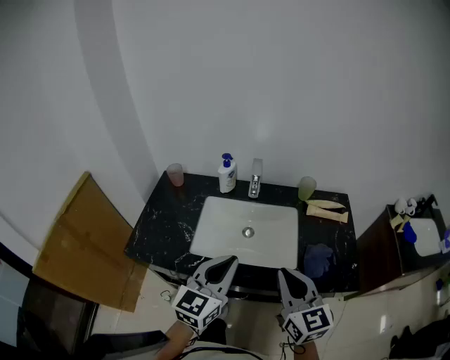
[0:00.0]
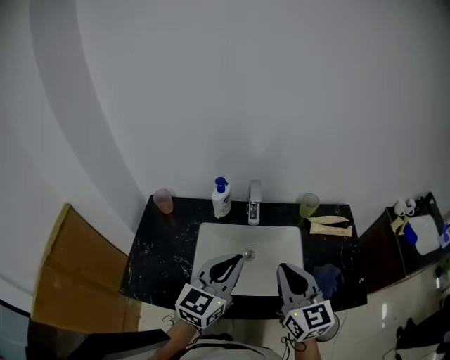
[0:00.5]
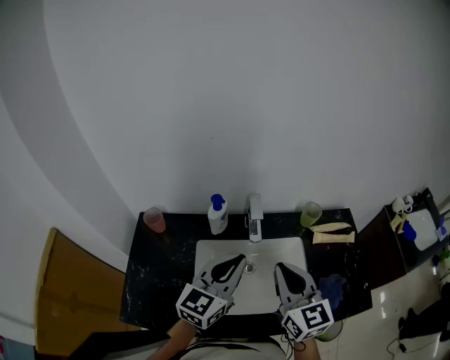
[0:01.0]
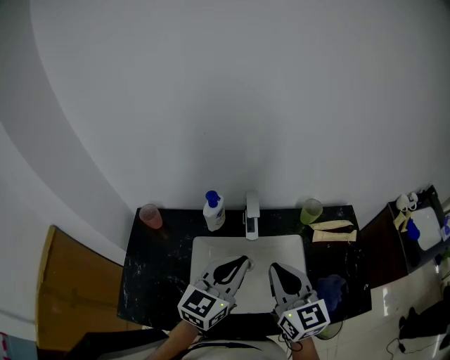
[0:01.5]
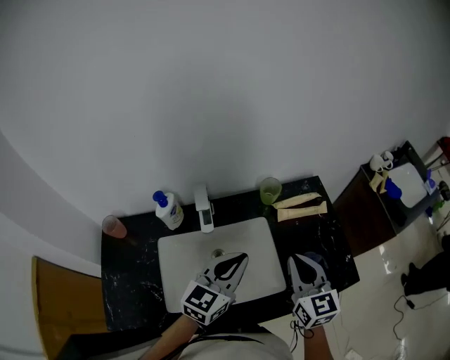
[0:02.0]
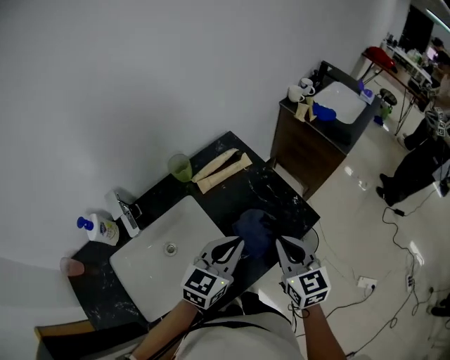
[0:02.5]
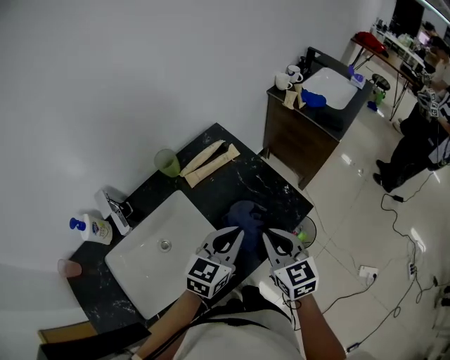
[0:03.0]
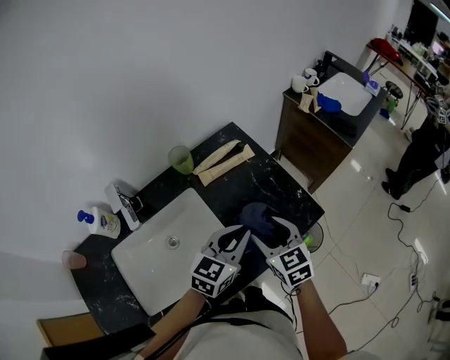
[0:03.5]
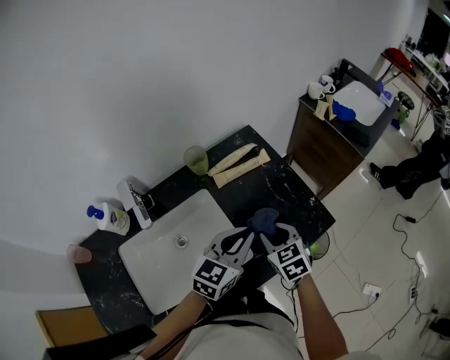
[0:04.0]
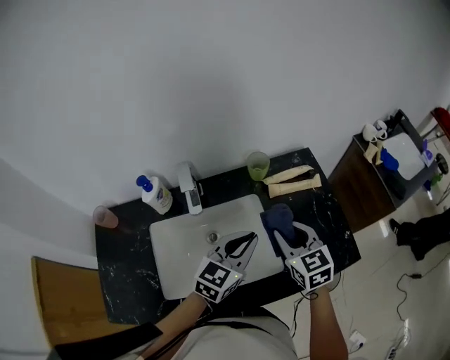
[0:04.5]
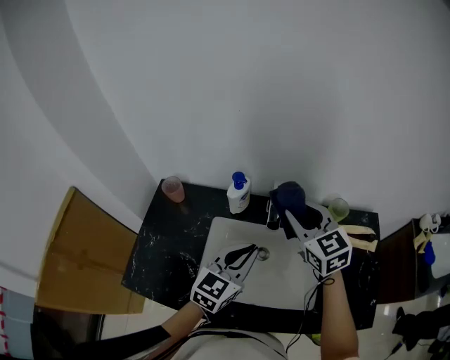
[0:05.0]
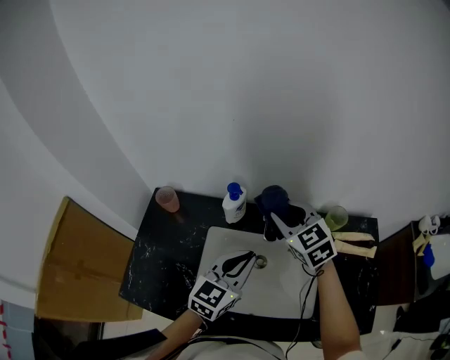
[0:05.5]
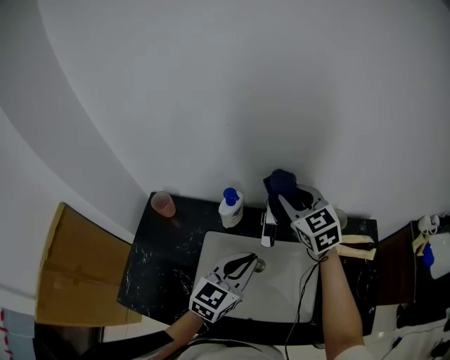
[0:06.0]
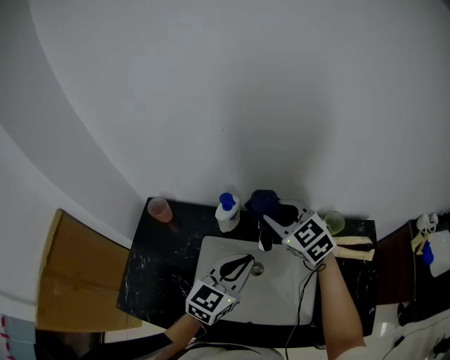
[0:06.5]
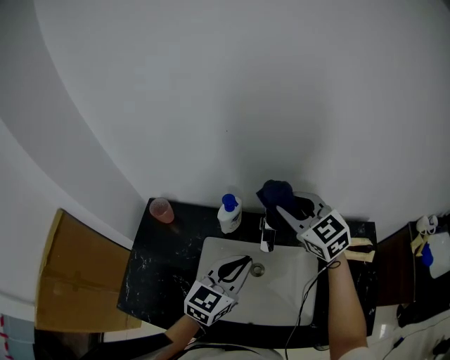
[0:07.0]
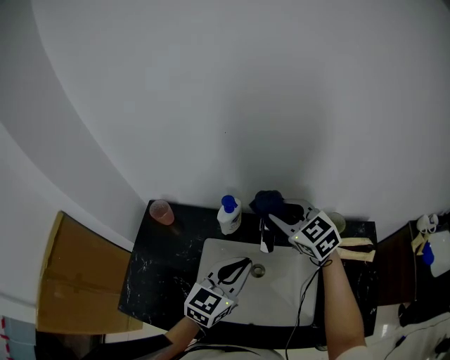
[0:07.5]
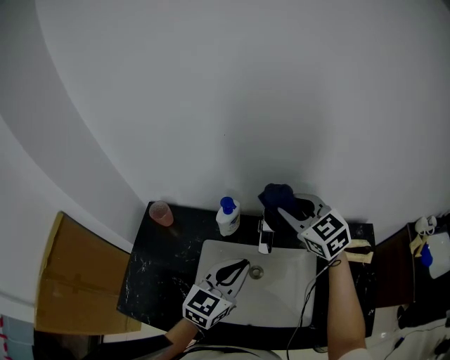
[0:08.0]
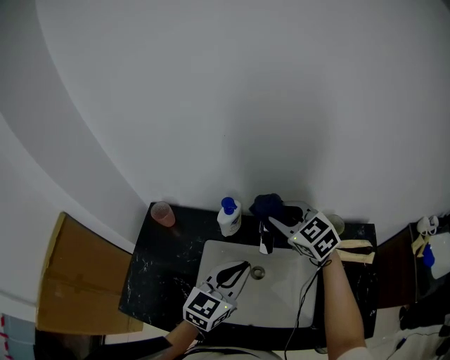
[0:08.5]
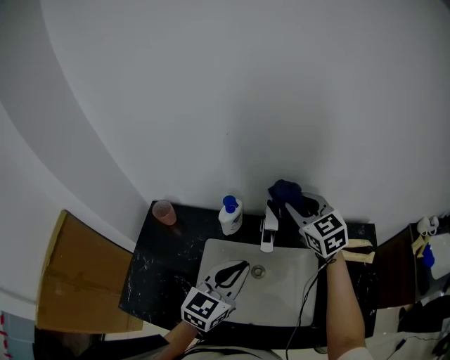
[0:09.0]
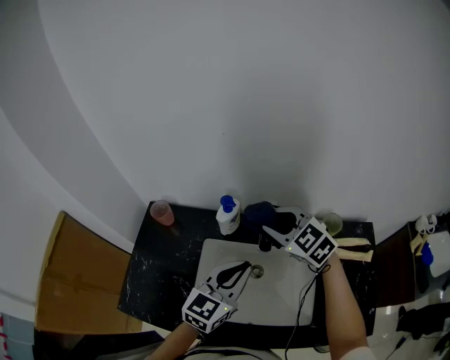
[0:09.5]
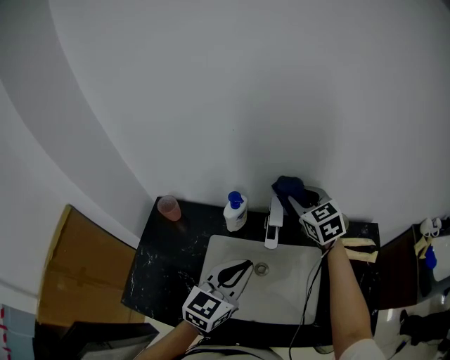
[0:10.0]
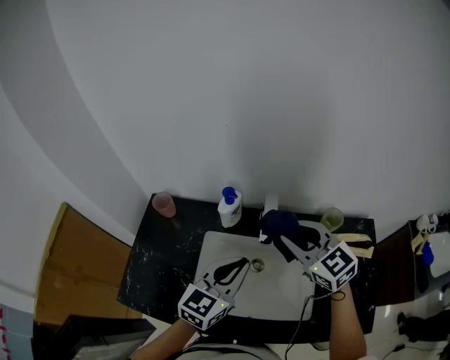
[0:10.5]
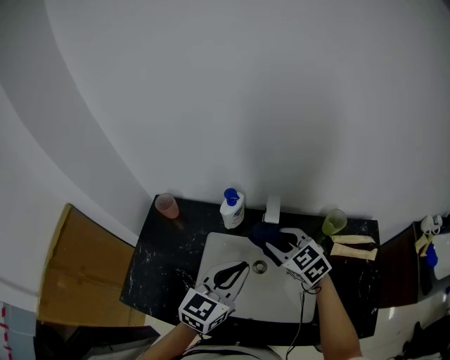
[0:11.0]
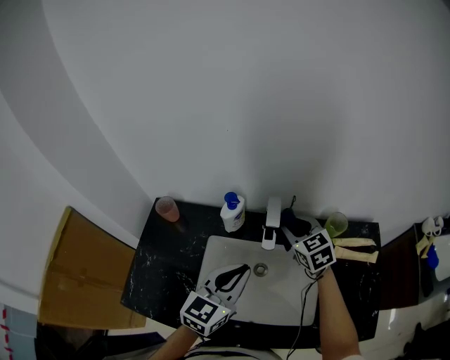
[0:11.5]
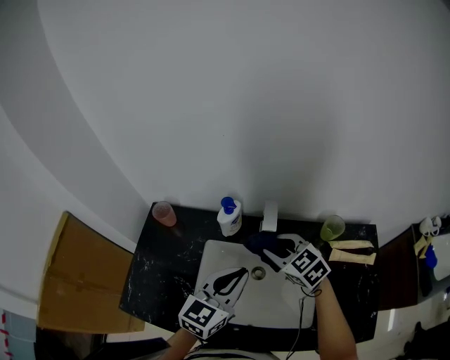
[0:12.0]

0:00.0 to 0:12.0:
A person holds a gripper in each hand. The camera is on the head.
0:00.0 to 0:02.0: The right gripper changes place by approximately 20 cm, and turns by roughly 20 degrees, while the left gripper changes place by approximately 25 cm, and turns by some 30 degrees.
0:02.0 to 0:04.0: The left gripper goes about 20 cm to the right and downward, and swivels some 20 degrees. The right gripper heads downward and to the right, covering about 20 cm, swivels approximately 30 degrees, and opens up.
0:04.0 to 0:06.0: The left gripper shifts by about 30 cm, and turns by roughly 40 degrees, while the right gripper changes place by roughly 50 cm, and rotates approximately 50 degrees.
0:08.0 to 0:10.0: The right gripper moves about 5 cm.
0:10.0 to 0:12.0: The right gripper swings forward and backward, about 15 cm each way, with 2 reversals, and turns by roughly 20 degrees.

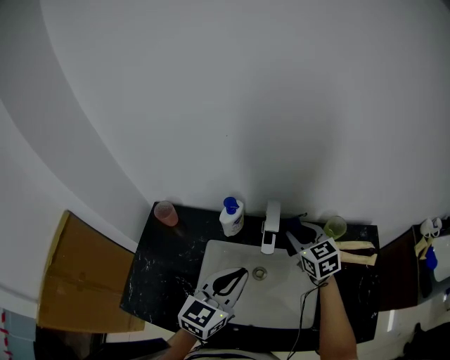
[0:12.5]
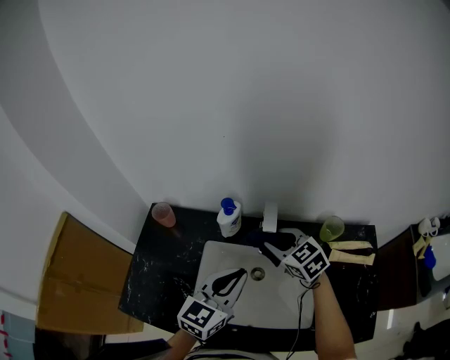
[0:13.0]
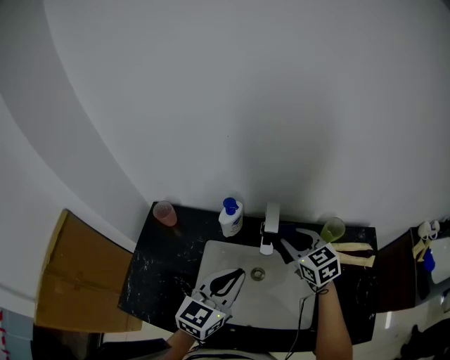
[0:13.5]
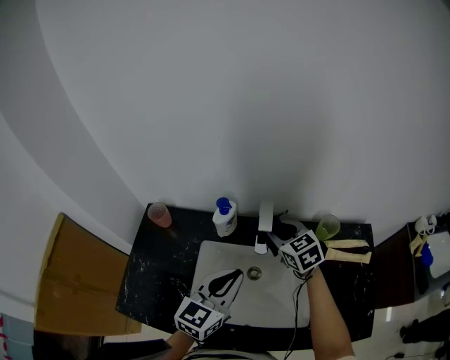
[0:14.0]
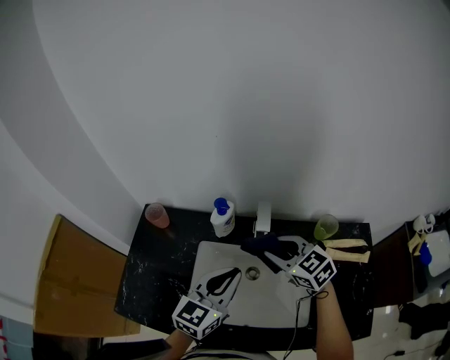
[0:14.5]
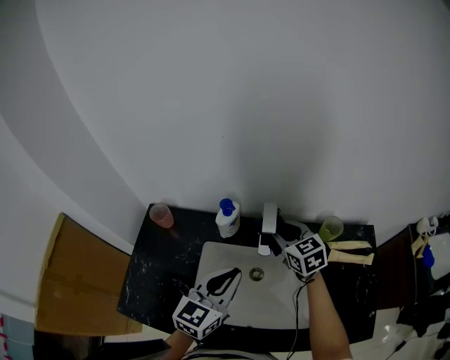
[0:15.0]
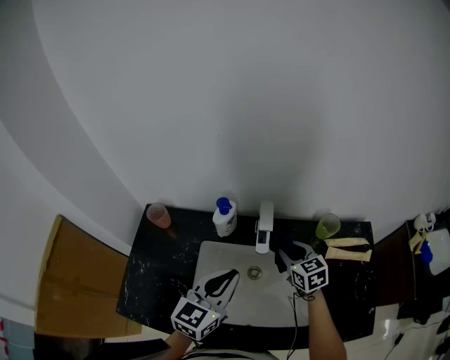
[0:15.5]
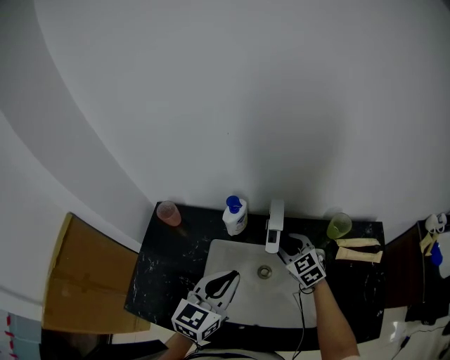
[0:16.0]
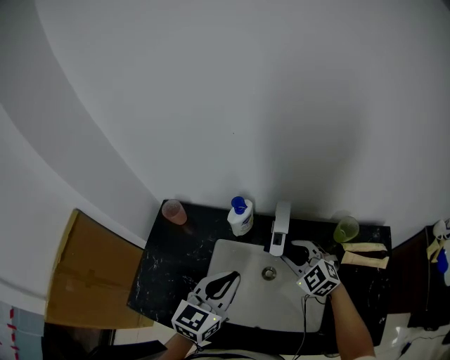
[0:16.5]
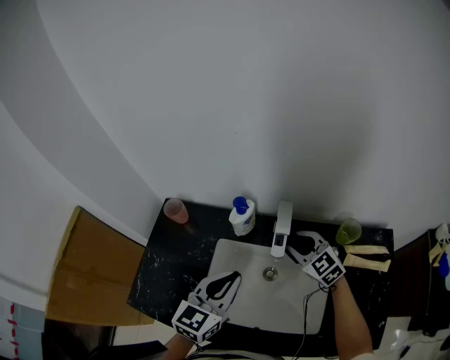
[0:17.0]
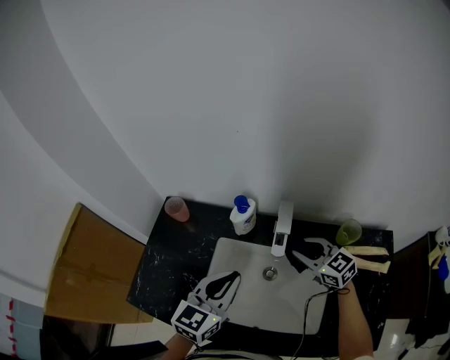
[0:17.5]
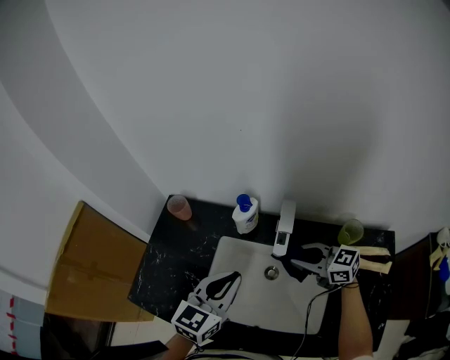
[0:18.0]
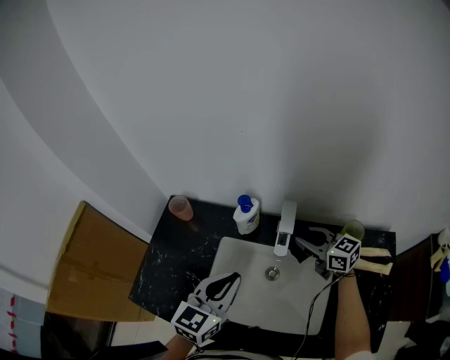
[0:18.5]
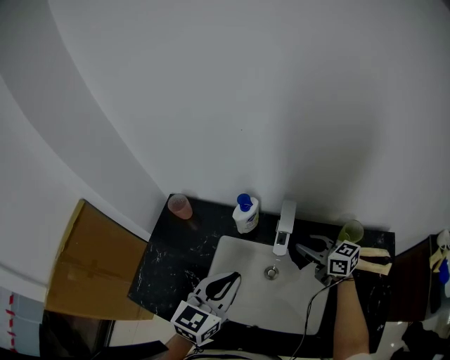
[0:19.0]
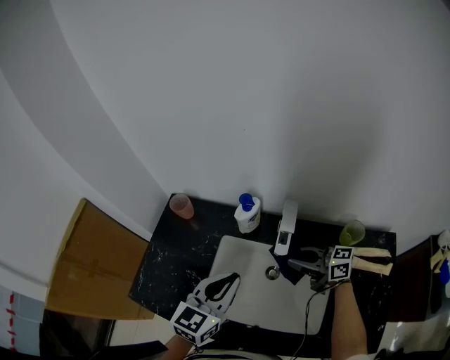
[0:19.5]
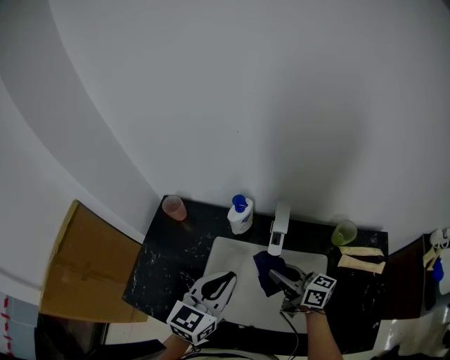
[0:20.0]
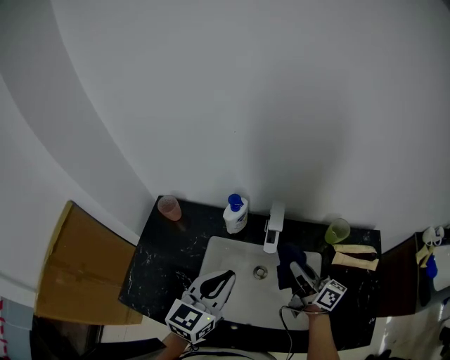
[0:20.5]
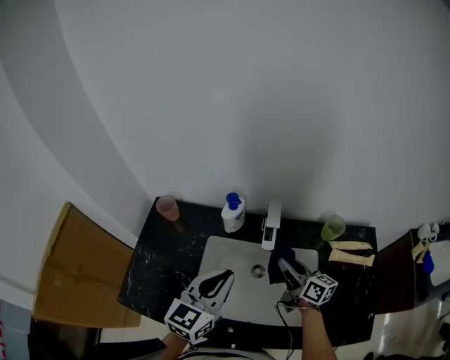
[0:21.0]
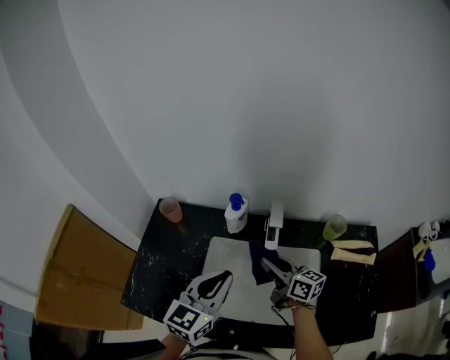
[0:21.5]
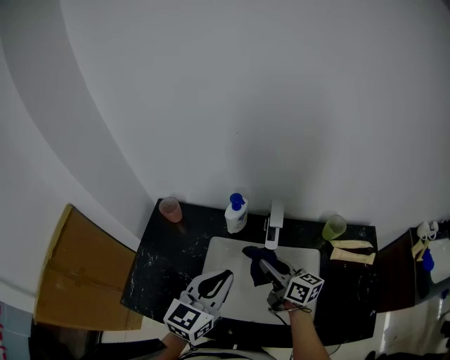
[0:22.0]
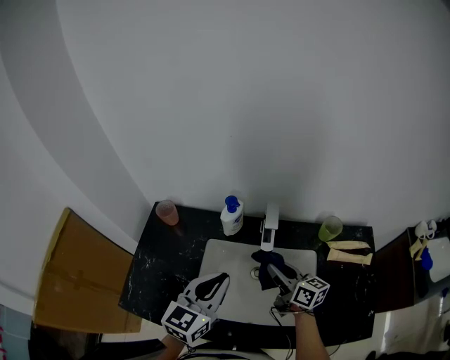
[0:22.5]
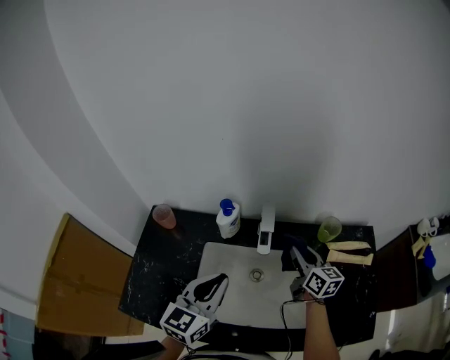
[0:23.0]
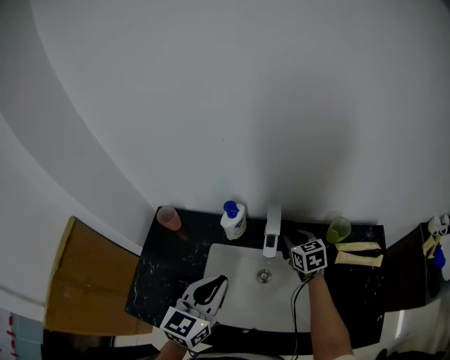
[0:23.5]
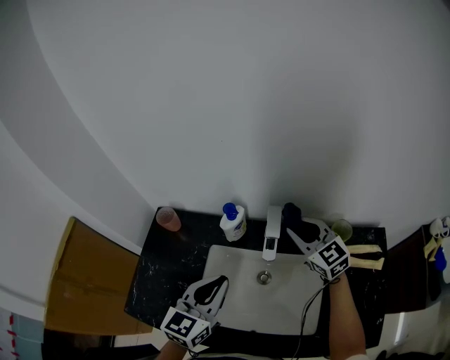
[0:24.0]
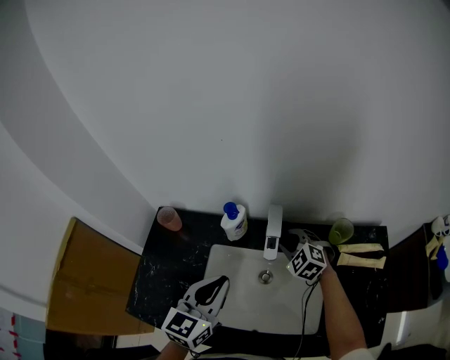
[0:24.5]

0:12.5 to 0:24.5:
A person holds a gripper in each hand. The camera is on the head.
0:12.5 to 0:14.5: The right gripper goes approximately 10 cm backward and to the left.
0:14.5 to 0:16.5: The right gripper goes about 5 cm downward, and turns by approximately 20 degrees.
0:16.5 to 0:18.5: The right gripper changes place by about 5 cm, and changes its angle by roughly 50 degrees.
0:18.5 to 0:20.5: The right gripper travels backward by some 10 cm, and rotates some 40 degrees.
0:20.5 to 0:22.5: The right gripper travels to the left by roughly 5 cm.
0:22.5 to 0:24.5: The right gripper moves forward, about 10 cm, and twists some 70 degrees counterclockwise, seen from behind.

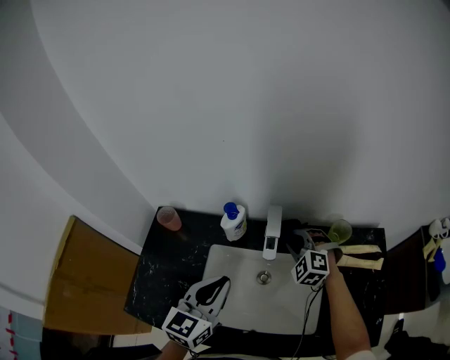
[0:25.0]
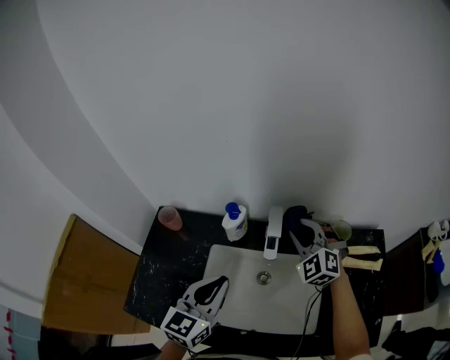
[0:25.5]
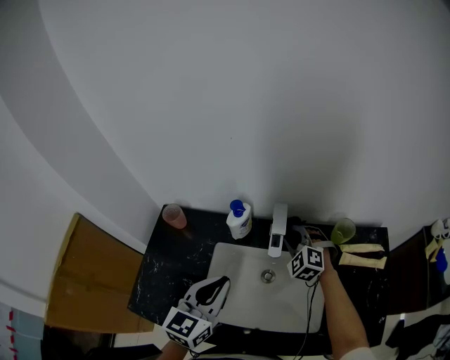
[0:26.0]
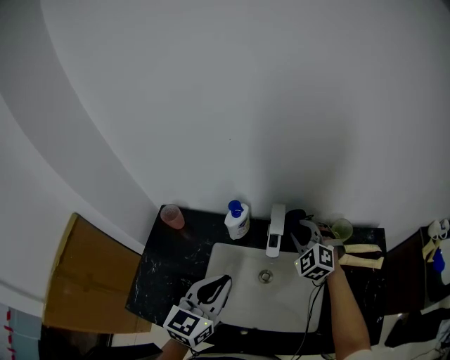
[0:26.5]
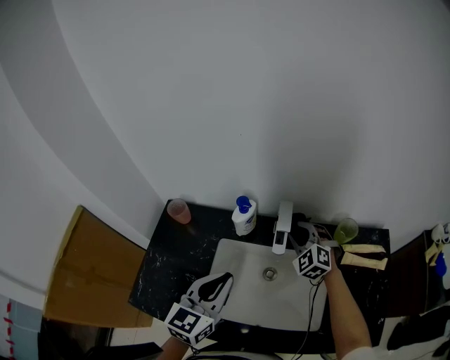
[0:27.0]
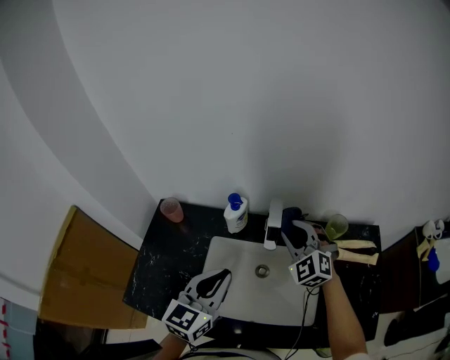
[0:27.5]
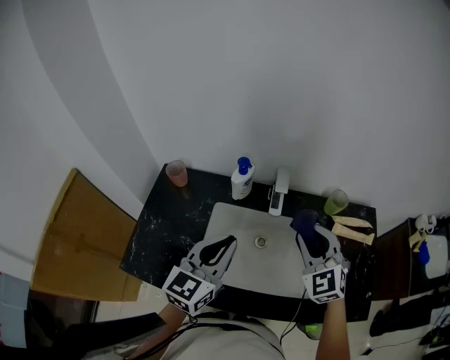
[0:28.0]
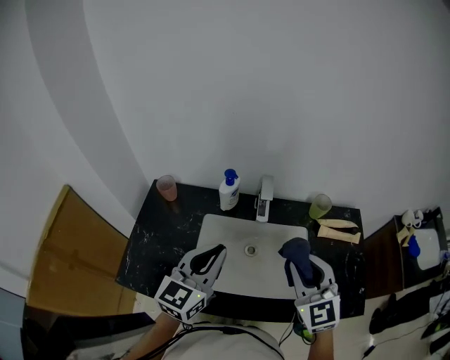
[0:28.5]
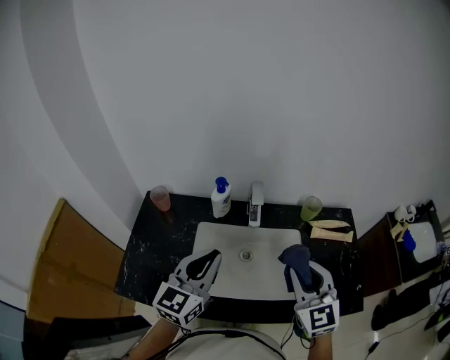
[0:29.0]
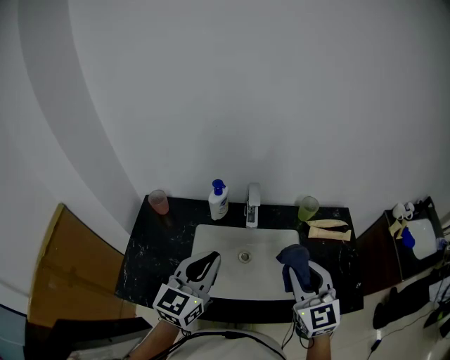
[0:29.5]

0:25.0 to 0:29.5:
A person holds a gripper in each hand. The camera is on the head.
0:25.0 to 0:27.0: The right gripper moves up and down over some 10 cm, changing direction 2 times.
0:27.0 to 0:29.5: The left gripper moves backward and upward, some 10 cm. The right gripper heads backward and upward, covering some 30 cm, and rotates about 40 degrees.
